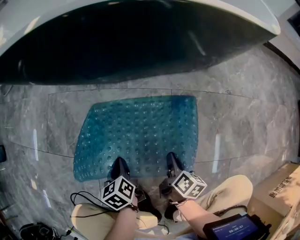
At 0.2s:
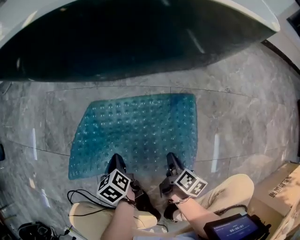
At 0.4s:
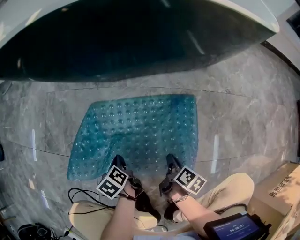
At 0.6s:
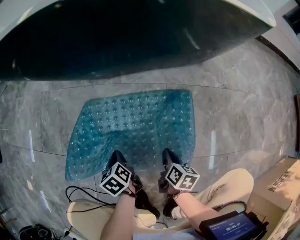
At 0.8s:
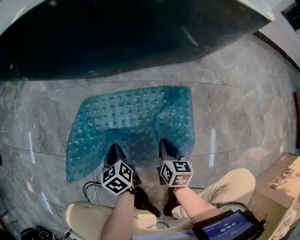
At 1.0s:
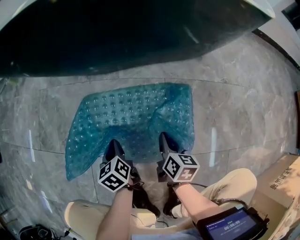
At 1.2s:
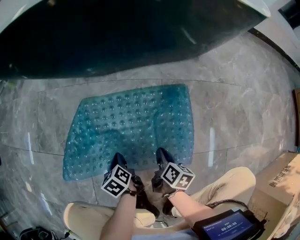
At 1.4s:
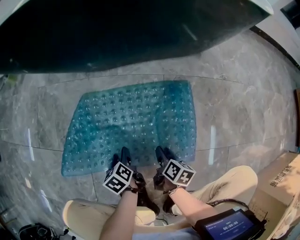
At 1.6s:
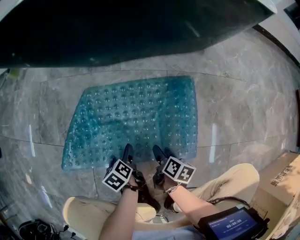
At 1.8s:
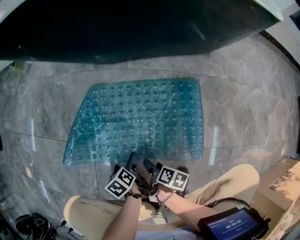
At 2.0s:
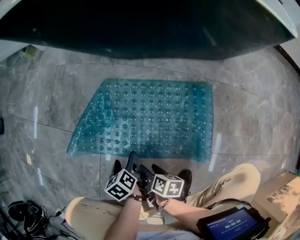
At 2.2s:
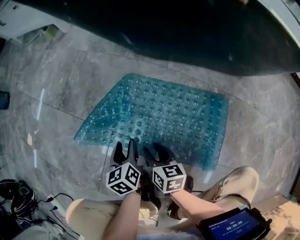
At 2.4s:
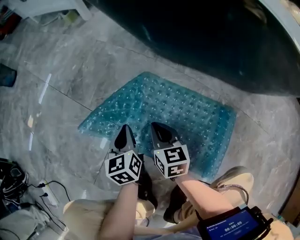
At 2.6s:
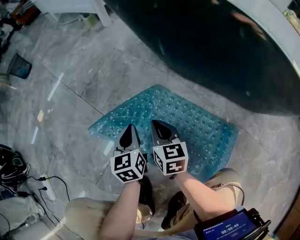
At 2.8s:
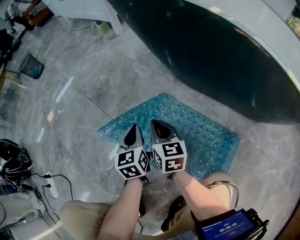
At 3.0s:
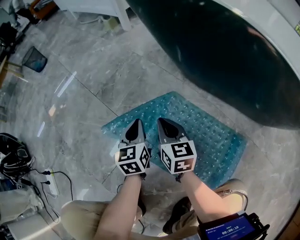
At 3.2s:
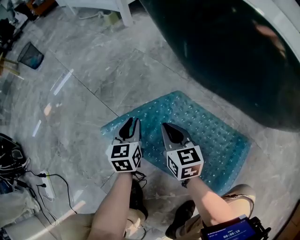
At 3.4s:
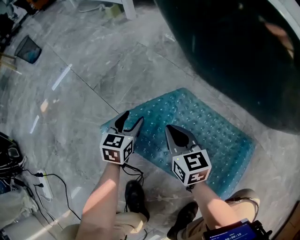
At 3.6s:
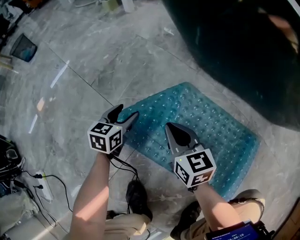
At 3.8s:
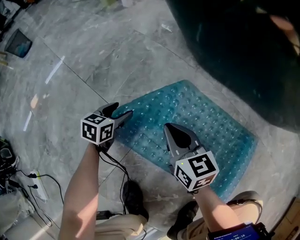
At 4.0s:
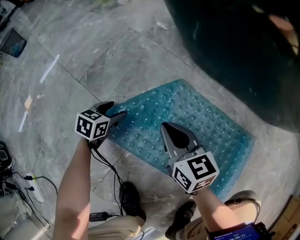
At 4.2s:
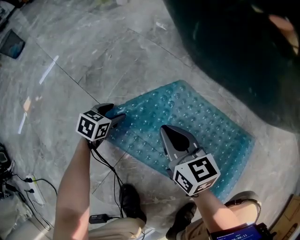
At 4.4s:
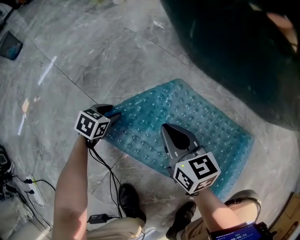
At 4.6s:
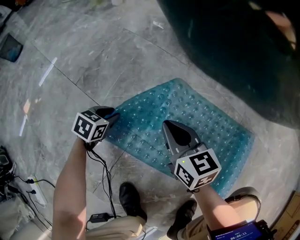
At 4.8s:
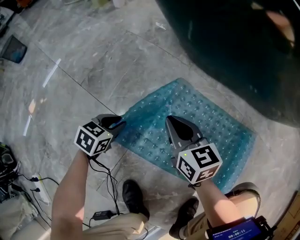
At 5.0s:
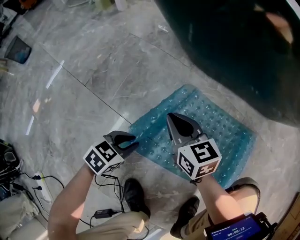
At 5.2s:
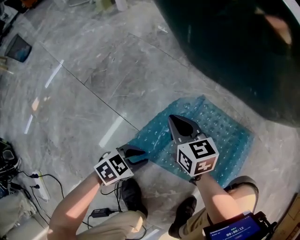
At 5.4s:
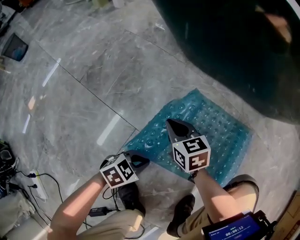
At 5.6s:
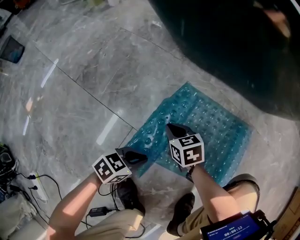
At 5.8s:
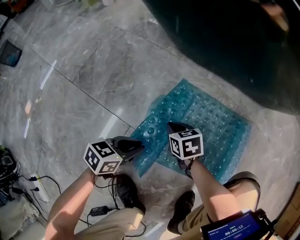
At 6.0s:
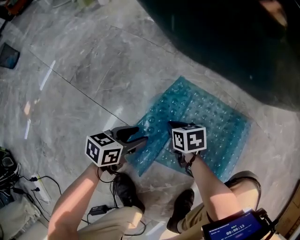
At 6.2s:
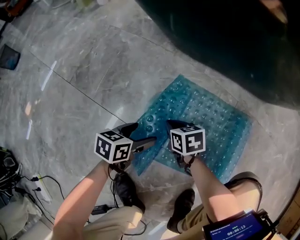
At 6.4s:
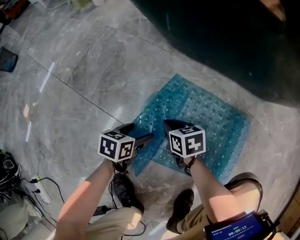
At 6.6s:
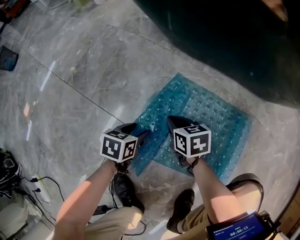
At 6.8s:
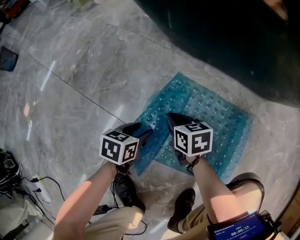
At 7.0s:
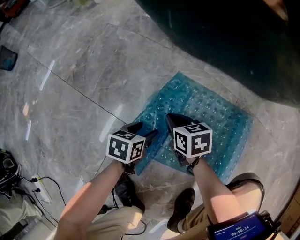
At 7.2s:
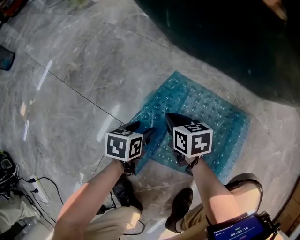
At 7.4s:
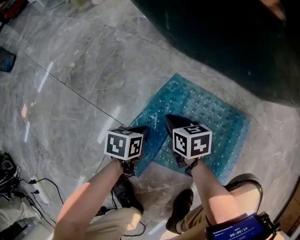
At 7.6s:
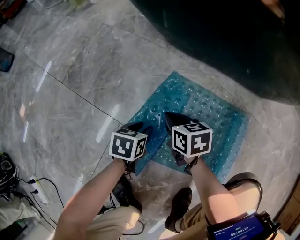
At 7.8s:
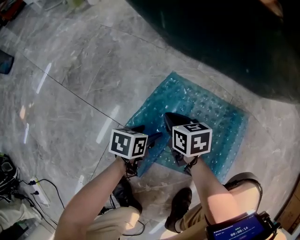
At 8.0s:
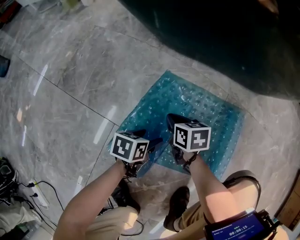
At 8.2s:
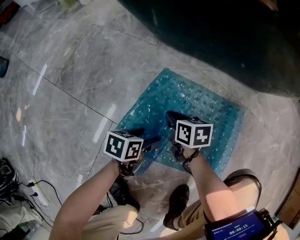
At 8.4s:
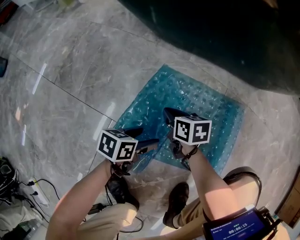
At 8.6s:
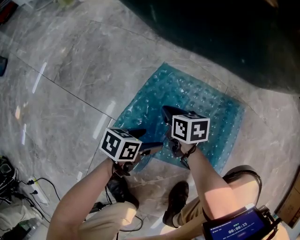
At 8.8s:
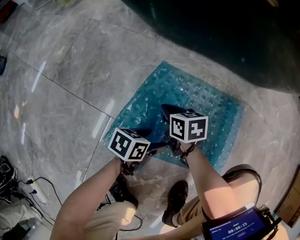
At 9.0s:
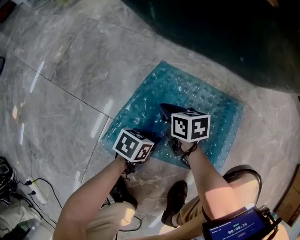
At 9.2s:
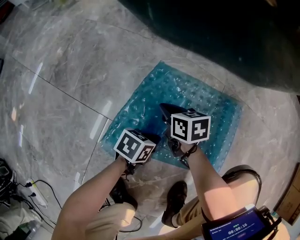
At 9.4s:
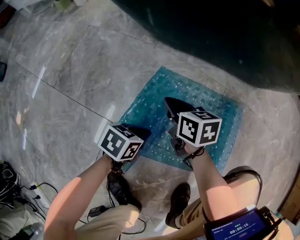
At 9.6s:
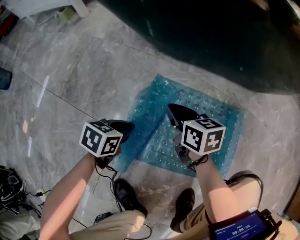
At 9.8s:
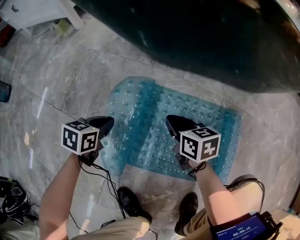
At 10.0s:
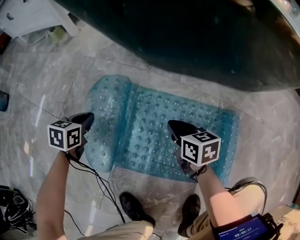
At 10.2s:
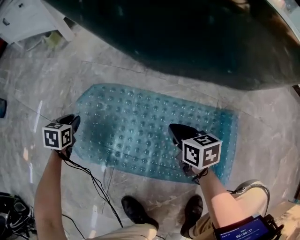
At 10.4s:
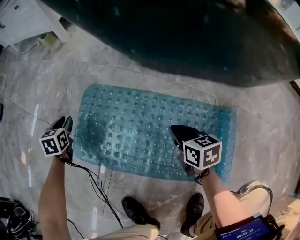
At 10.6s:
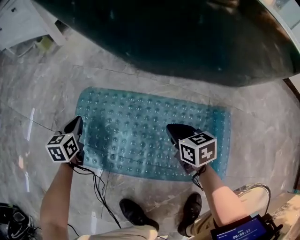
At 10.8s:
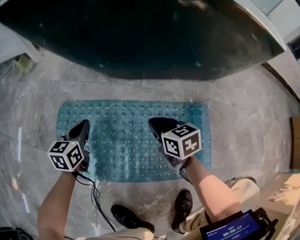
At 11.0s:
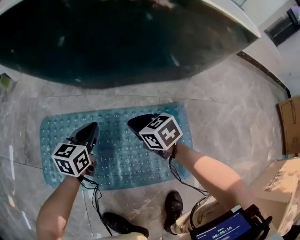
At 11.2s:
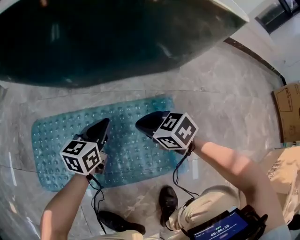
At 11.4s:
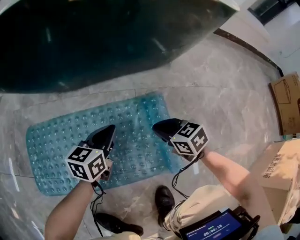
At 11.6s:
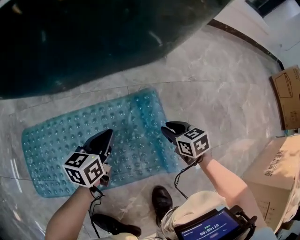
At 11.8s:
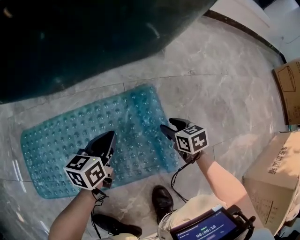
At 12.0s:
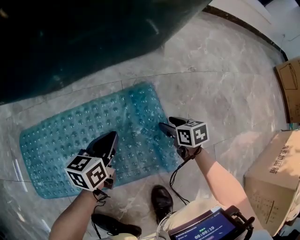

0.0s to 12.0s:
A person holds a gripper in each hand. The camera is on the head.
0.0s to 1.6s: Both grippers travel together downward and backward, some 10 cm. The left gripper opens. The right gripper opens its fingers.
1.6s to 3.0s: The left gripper changes place by roughly 25 cm, tips its fingers upward by approximately 30 degrees, and closes. The right gripper moves about 35 cm, rotates around the line of its fingers by about 70 degrees, counterclockwise from behind, and closes its fingers.
3.0s to 4.4s: The right gripper goes roughly 5 cm downward. Meanwhile the left gripper goes approximately 25 cm downward and to the left, changes its angle by about 50 degrees, and opens up.
4.4s to 6.0s: The left gripper changes place by about 20 cm, changes its angle by roughly 30 degrees, and closes, then opens again. The right gripper moves downward, some 15 cm, and changes its angle by approximately 30 degrees.
6.0s to 7.6s: The right gripper moves about 5 cm; the left gripper heads downward, covering about 5 cm, turns by roughly 20 degrees, and opens, then closes once more.
7.6s to 9.0s: The left gripper ends up some 10 cm from where it was, rotates some 20 degrees, and opens, then closes again.
9.0s to 10.4s: The right gripper moves upward, some 5 cm. Meanwhile the left gripper changes place by some 50 cm, and swivels roughly 50 degrees.
10.4s to 12.0s: The left gripper changes place by some 60 cm, and changes its angle by about 60 degrees. Meanwhile the right gripper ends up approximately 40 cm from where it was, rotates about 30 degrees, and opens its fingers.

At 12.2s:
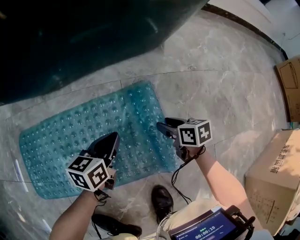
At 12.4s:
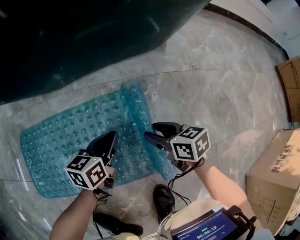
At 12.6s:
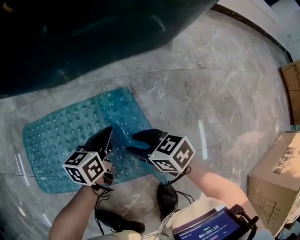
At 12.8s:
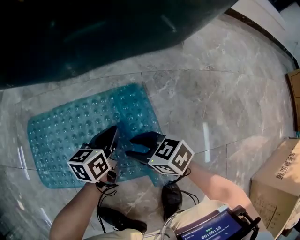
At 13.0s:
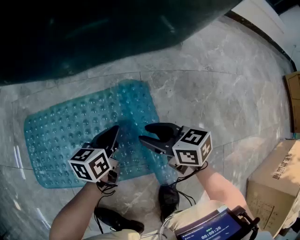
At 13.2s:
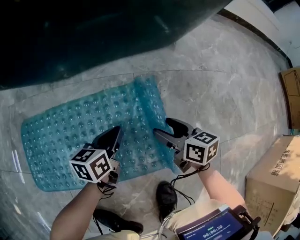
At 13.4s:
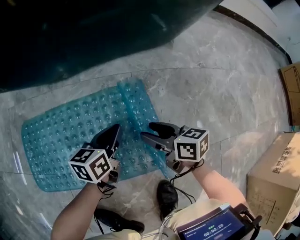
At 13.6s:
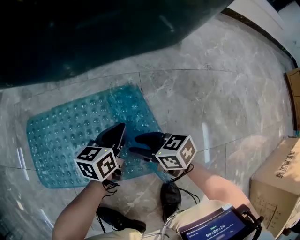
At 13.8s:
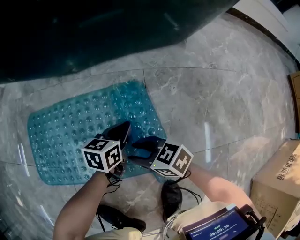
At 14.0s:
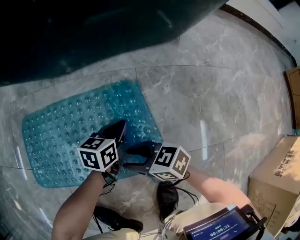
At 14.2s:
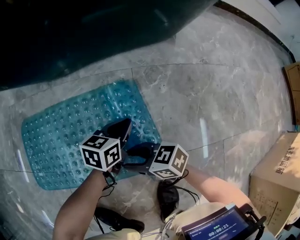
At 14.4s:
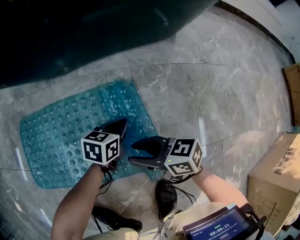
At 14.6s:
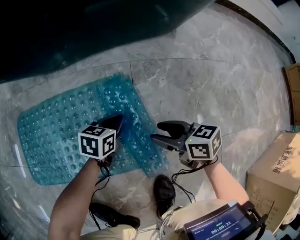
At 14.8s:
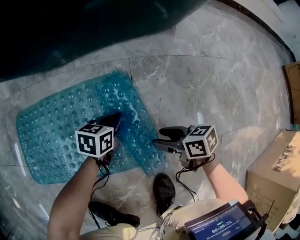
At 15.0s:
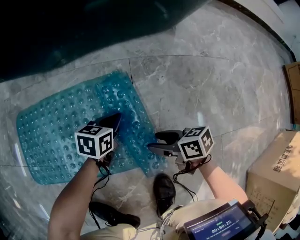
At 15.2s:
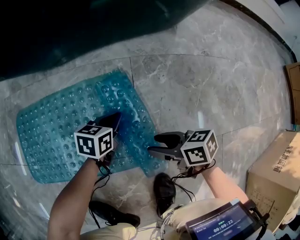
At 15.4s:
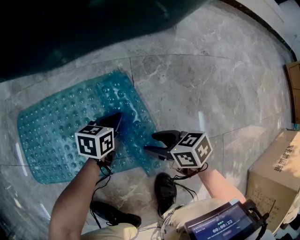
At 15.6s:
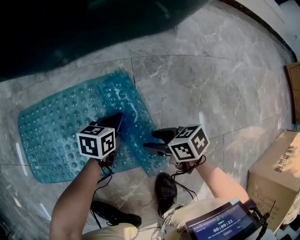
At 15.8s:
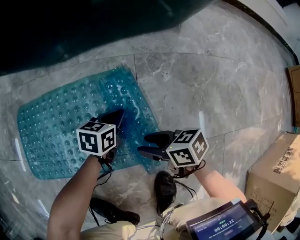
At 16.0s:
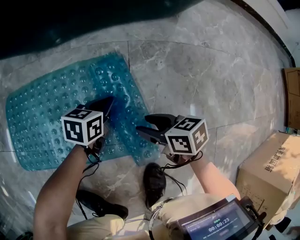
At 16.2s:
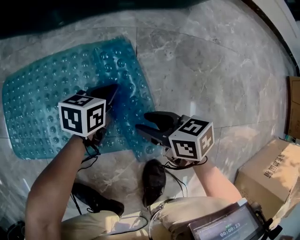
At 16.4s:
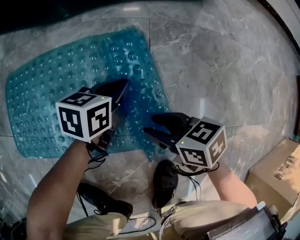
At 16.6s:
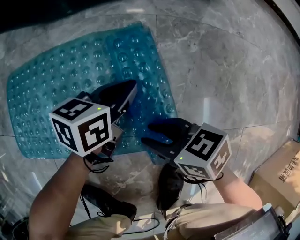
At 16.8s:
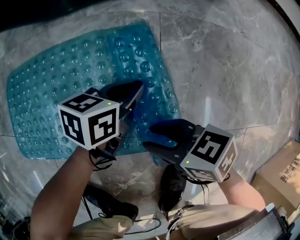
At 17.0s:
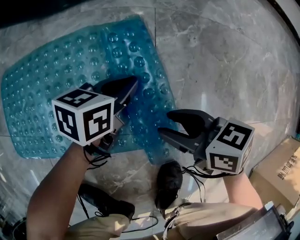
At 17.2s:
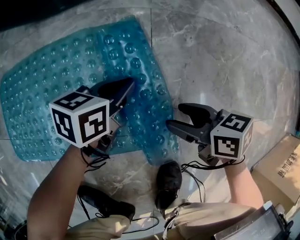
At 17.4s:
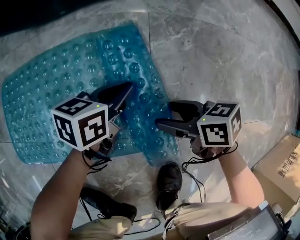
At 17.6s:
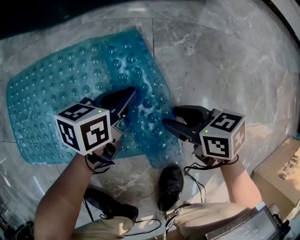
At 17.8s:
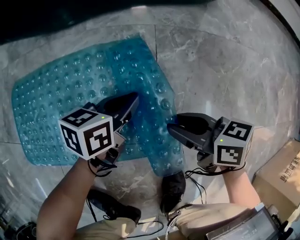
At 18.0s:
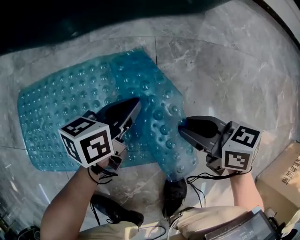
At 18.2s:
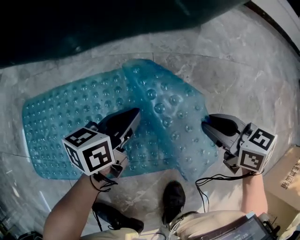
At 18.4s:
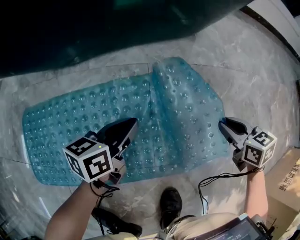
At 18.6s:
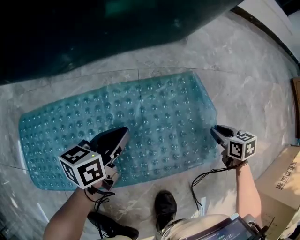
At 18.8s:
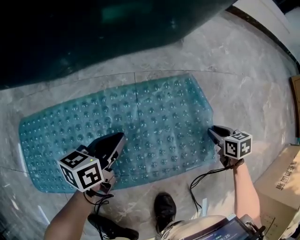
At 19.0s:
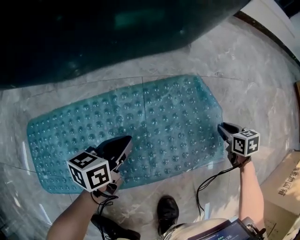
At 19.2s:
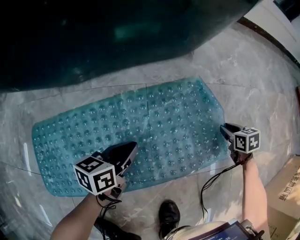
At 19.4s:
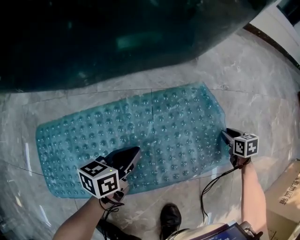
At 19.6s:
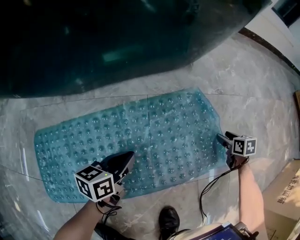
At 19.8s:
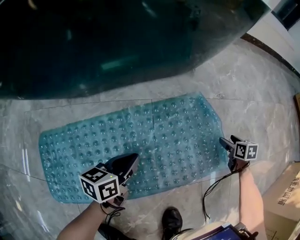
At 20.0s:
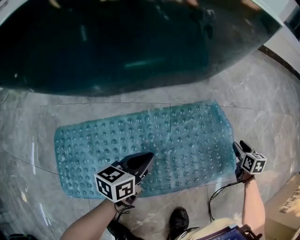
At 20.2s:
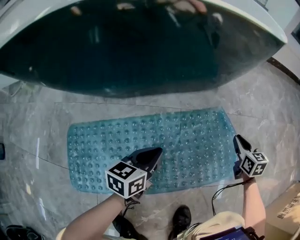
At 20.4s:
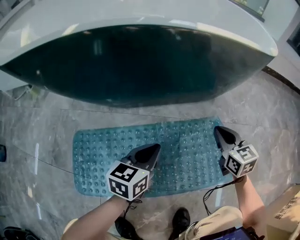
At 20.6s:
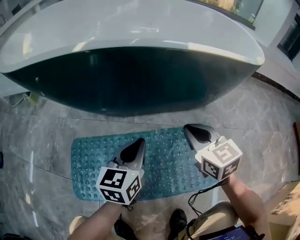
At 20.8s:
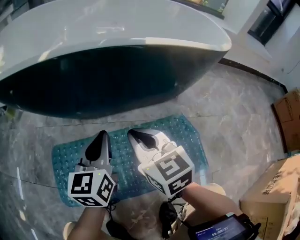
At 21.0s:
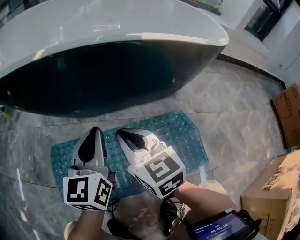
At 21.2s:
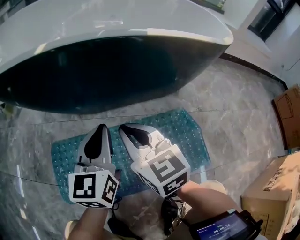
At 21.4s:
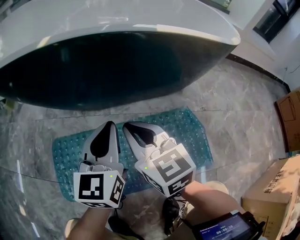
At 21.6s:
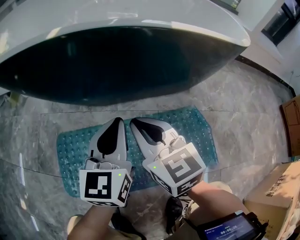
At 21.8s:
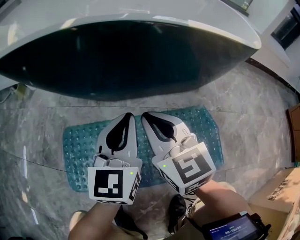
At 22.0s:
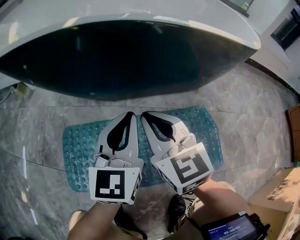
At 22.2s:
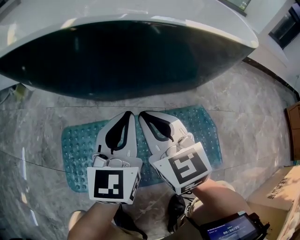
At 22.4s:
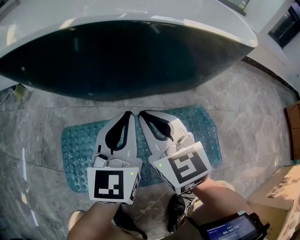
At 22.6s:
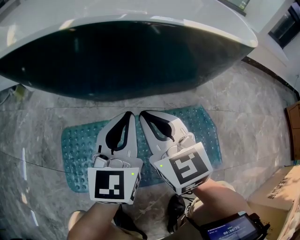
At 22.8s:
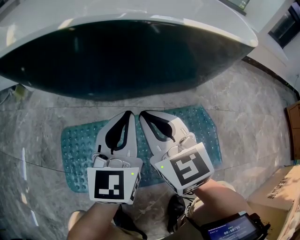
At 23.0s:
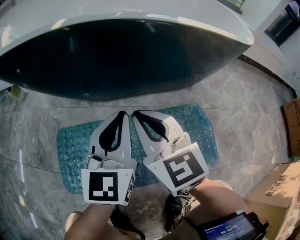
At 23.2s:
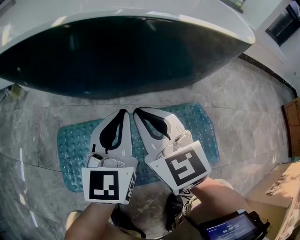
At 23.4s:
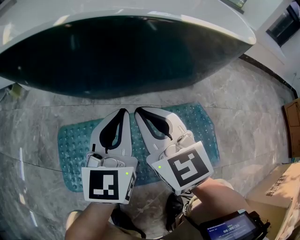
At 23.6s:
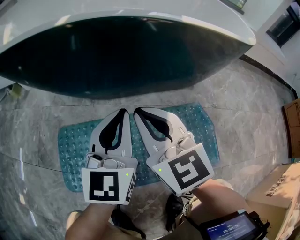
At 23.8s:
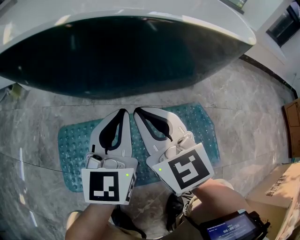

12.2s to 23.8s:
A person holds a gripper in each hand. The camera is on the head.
12.2s to 13.6s: The right gripper swings left and right, some 20 cm each way, with 2 reversals, changes its angle by roughly 30 degrees, and opens and closes again.
13.6s to 15.0s: The right gripper shifts by approximately 10 cm. Meanwhile the left gripper heads downward, covering about 10 cm.
15.0s to 16.6s: The right gripper moves roughly 10 cm, rotates approximately 20 degrees, and closes its fingers.
16.6s to 18.0s: The right gripper ends up roughly 10 cm from where it was, and opens and closes again.
18.0s to 19.4s: The right gripper shifts some 30 cm to the right and forward, and rotates some 40 degrees.
19.4s to 21.0s: The left gripper shifts some 30 cm upward, and changes its angle by approximately 50 degrees; the right gripper shifts by about 60 cm, tilts its fingers some 40 degrees upward, and closes.
21.0s to 23.8s: There are only small adjustments of the grippers.
